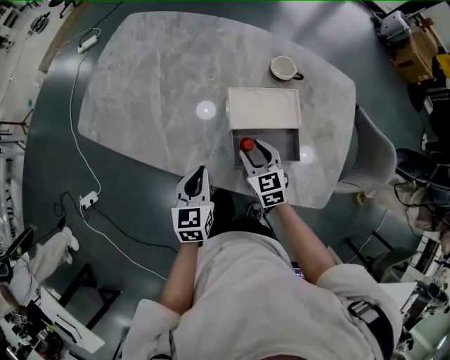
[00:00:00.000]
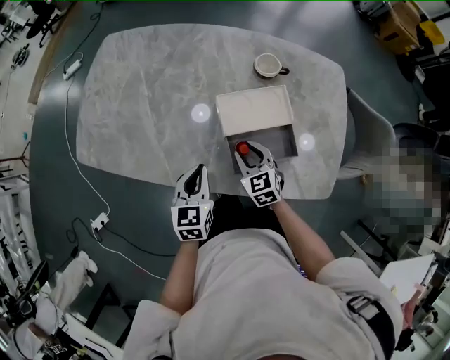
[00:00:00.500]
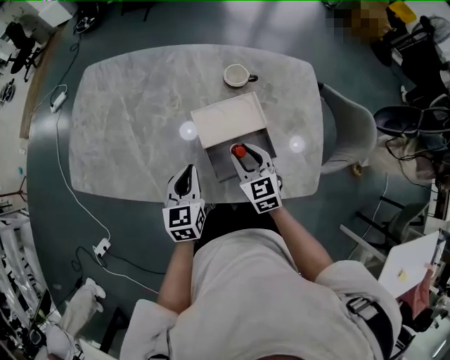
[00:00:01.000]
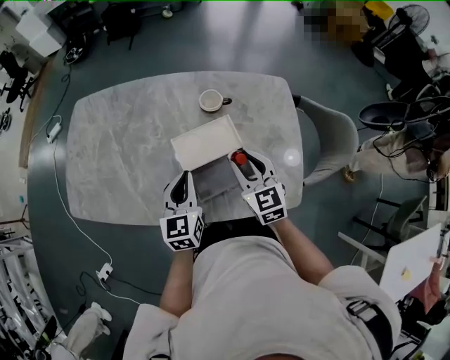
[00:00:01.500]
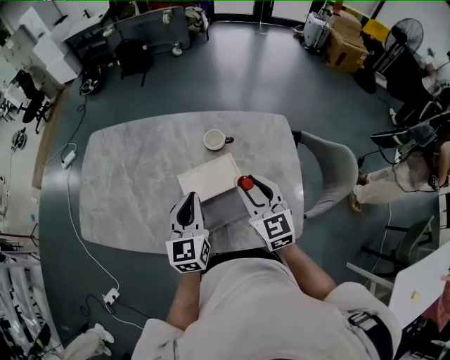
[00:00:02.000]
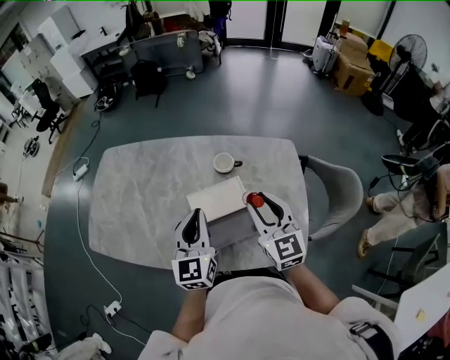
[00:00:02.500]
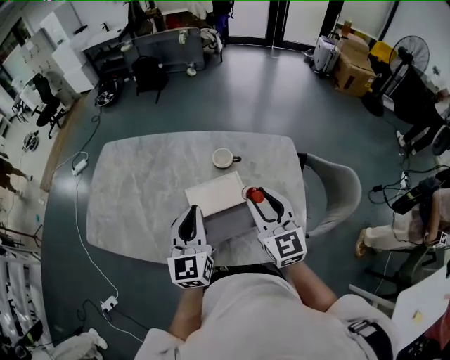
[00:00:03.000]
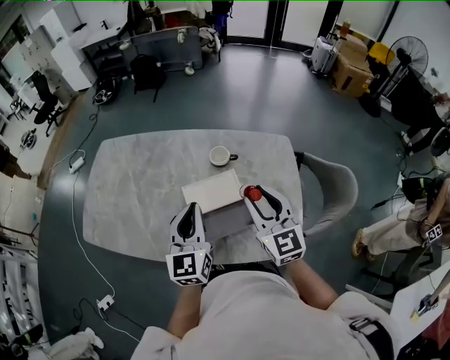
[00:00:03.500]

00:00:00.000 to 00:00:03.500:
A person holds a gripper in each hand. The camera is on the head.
00:00:00.000 to 00:00:02.000: The right gripper shifts some 25 cm upward and to the right, and turns by about 30 degrees. The left gripper moves upward, to the right and forward, about 25 cm, and rotates roughly 20 degrees.
00:00:02.000 to 00:00:03.500: Both grippers move upward, approximately 5 cm.

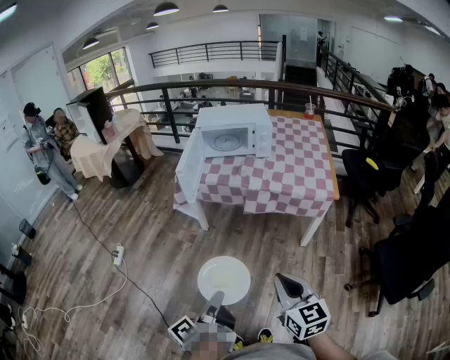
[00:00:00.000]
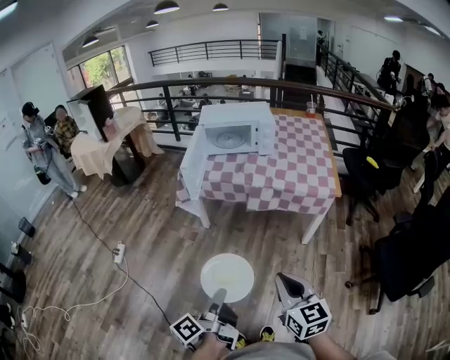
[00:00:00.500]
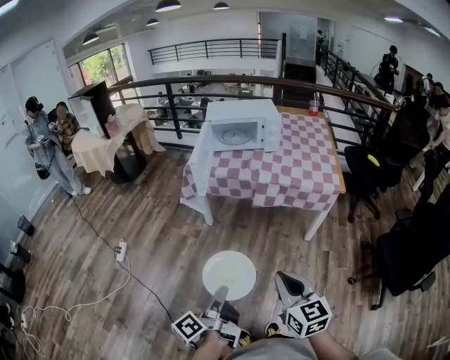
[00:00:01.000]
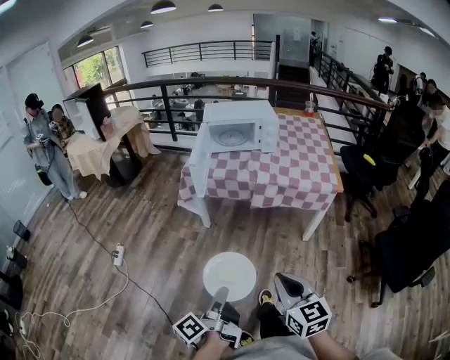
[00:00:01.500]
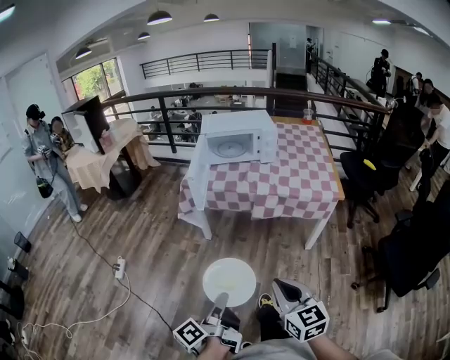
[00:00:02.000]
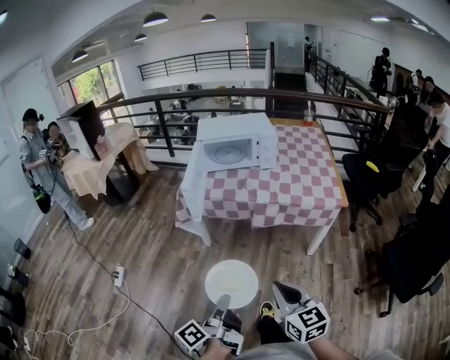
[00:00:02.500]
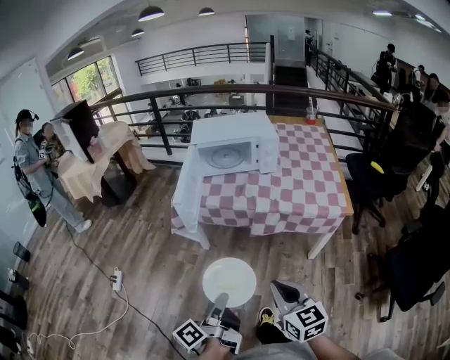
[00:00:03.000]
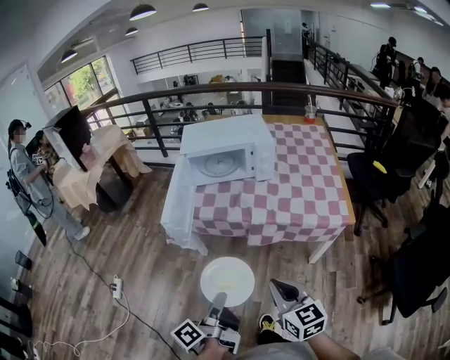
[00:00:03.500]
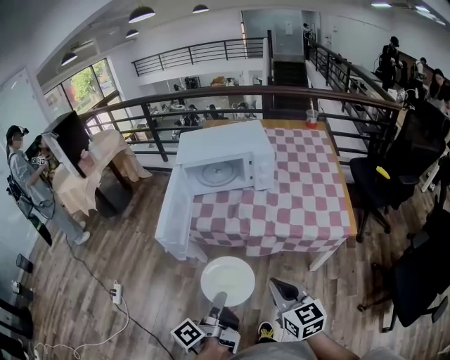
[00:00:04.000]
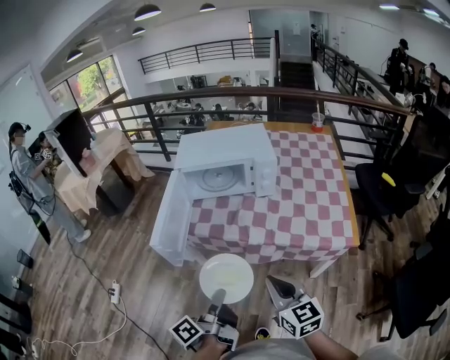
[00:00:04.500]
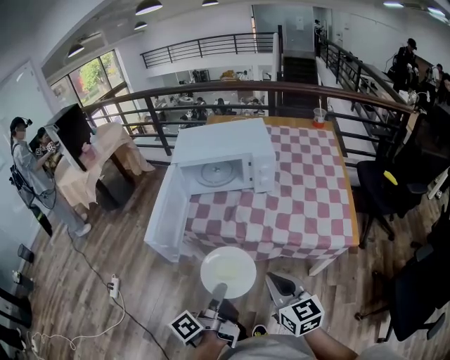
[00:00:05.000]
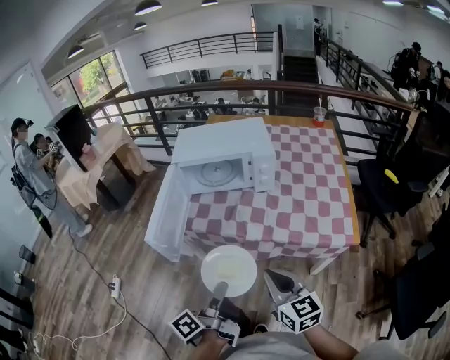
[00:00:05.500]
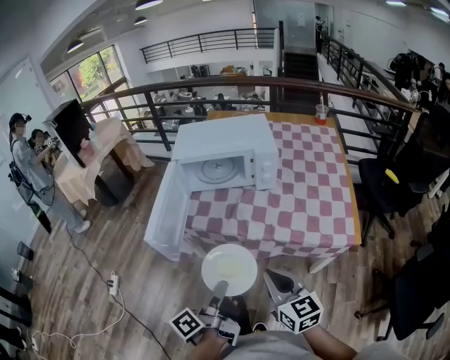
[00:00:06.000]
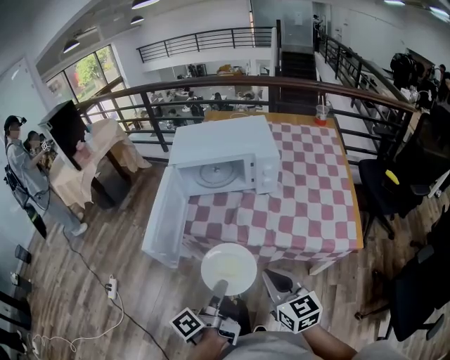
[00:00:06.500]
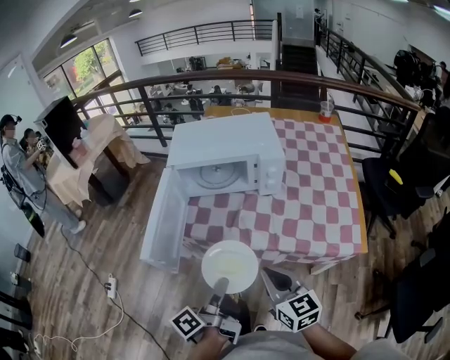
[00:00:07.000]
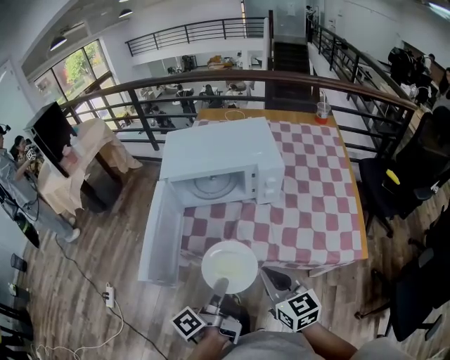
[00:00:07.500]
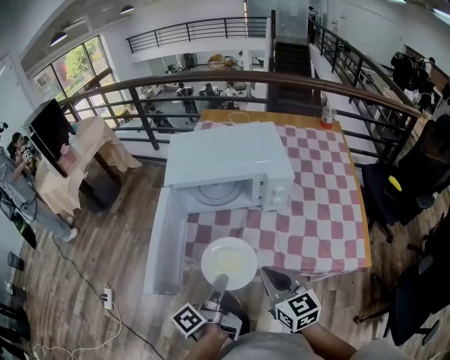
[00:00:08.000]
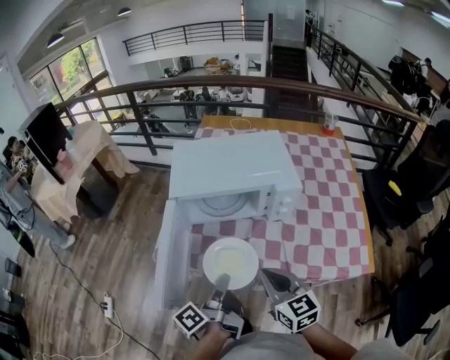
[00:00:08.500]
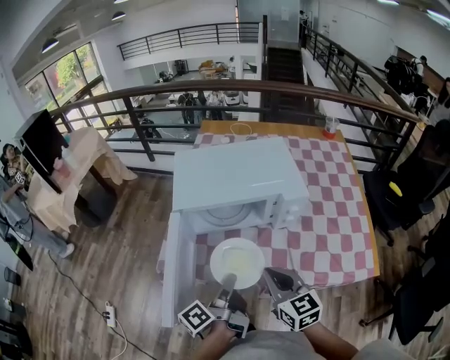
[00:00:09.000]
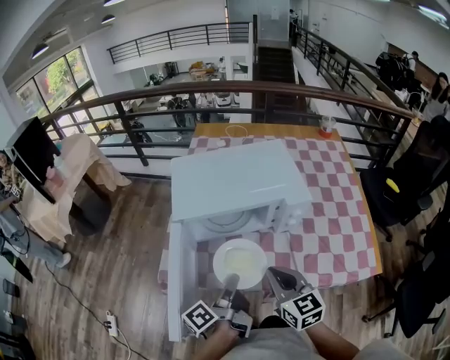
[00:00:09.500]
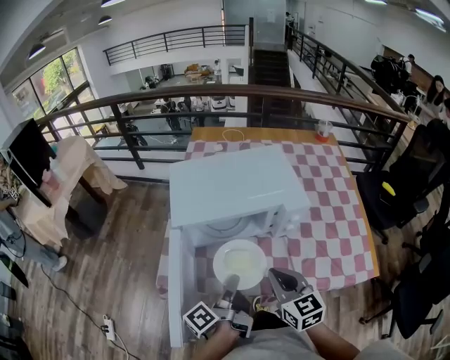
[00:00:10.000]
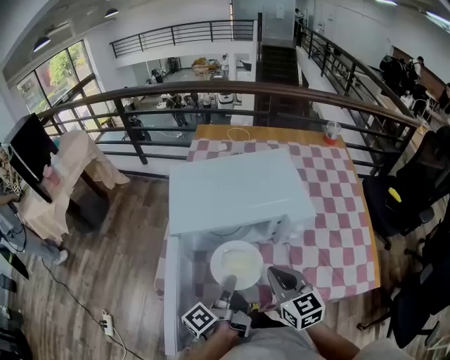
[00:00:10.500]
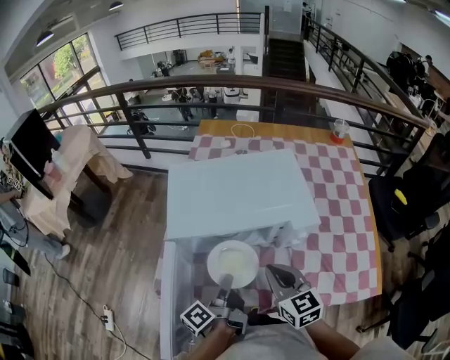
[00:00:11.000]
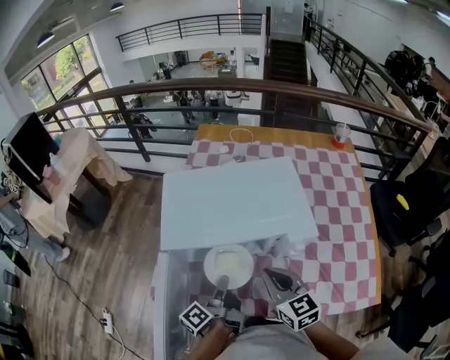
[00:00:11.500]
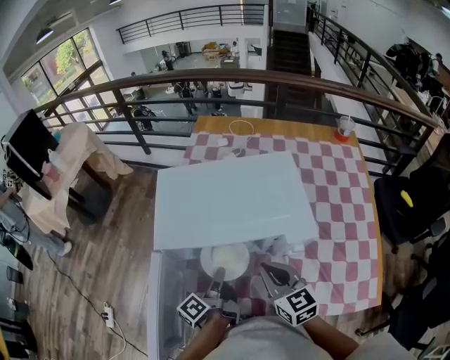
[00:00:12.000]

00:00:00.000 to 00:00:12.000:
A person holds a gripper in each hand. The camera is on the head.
00:00:00.000 to 00:00:02.000: The two grippers go approximately 10 cm to the left.
00:00:02.000 to 00:00:04.000: Both grippers move forward, approximately 30 cm.
00:00:04.000 to 00:00:06.000: Both grippers travel together forward, some 5 cm.
00:00:06.000 to 00:00:08.000: Both grippers move forward, approximately 20 cm.
00:00:08.000 to 00:00:10.000: Both grippers move forward, approximately 15 cm.
00:00:10.000 to 00:00:12.000: The left gripper shifts about 15 cm forward and downward. Meanwhile the right gripper goes some 15 cm forward.

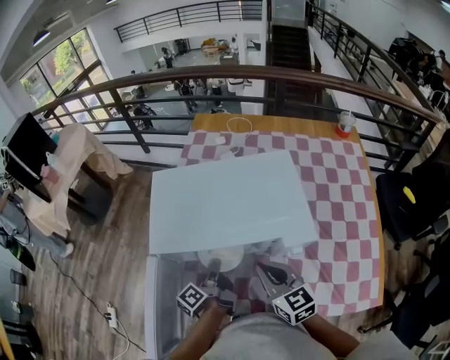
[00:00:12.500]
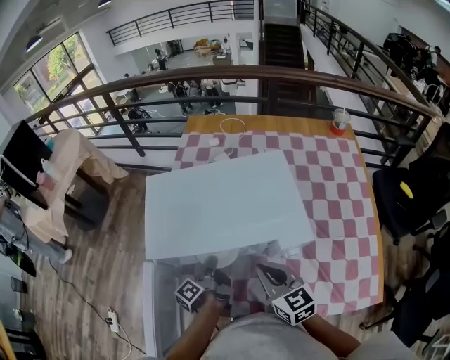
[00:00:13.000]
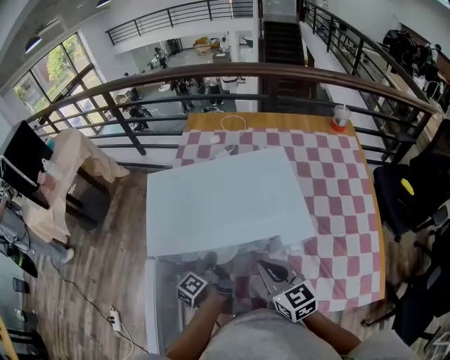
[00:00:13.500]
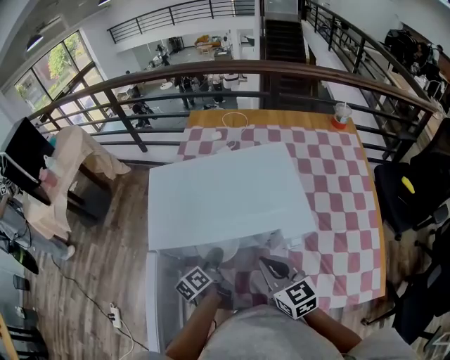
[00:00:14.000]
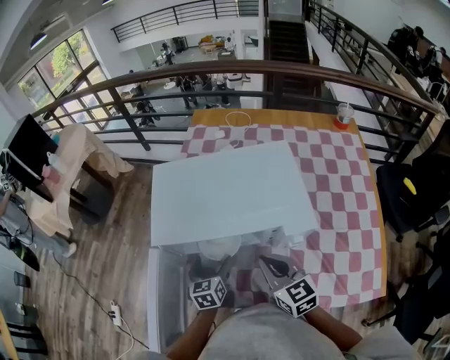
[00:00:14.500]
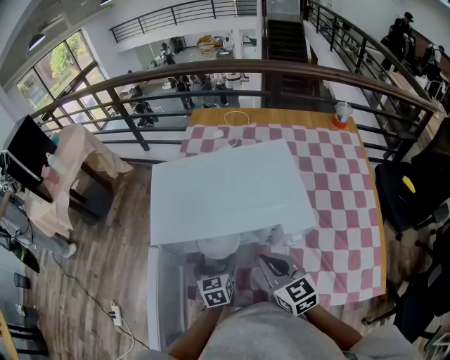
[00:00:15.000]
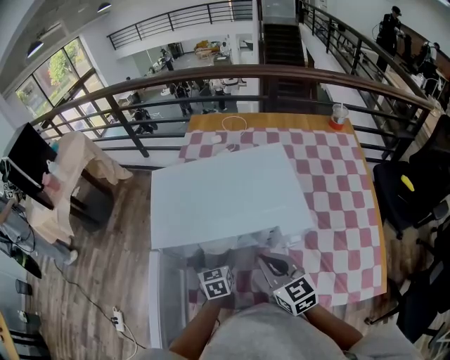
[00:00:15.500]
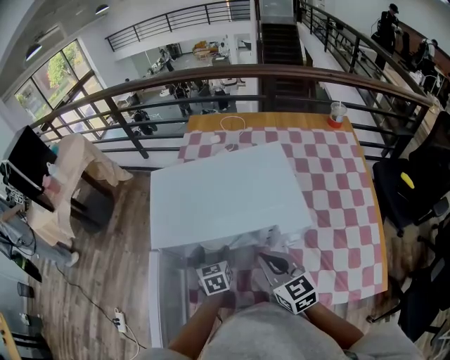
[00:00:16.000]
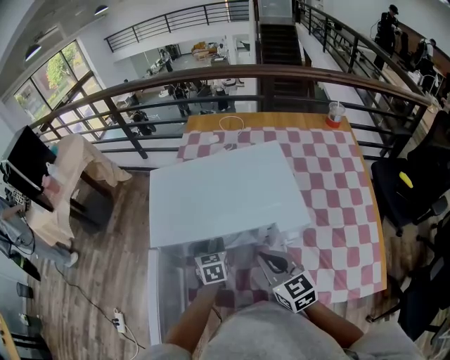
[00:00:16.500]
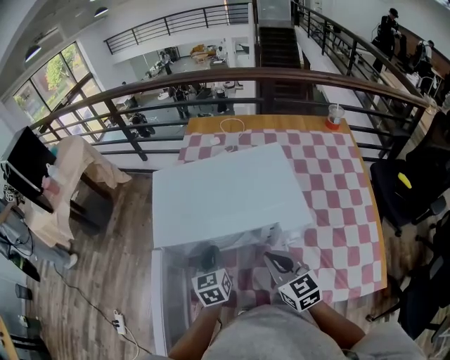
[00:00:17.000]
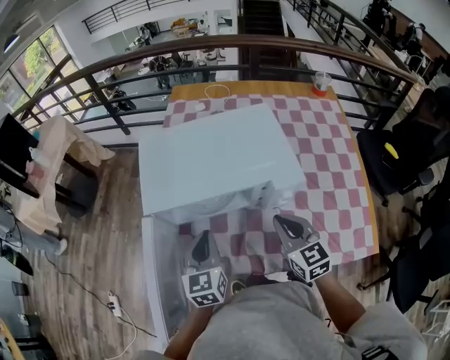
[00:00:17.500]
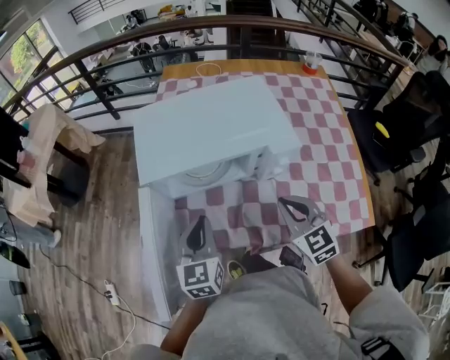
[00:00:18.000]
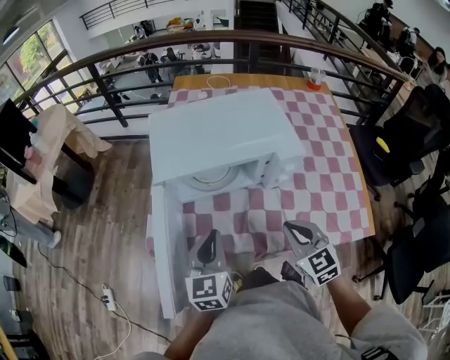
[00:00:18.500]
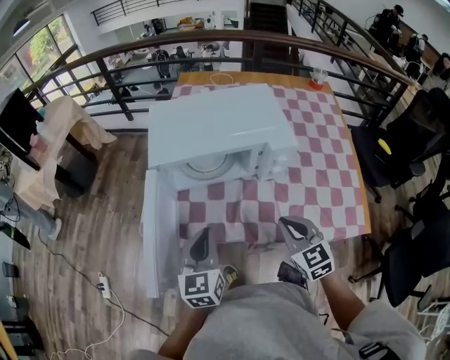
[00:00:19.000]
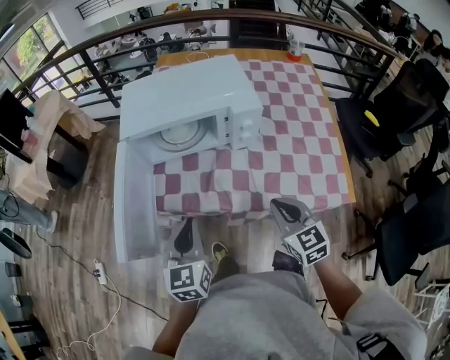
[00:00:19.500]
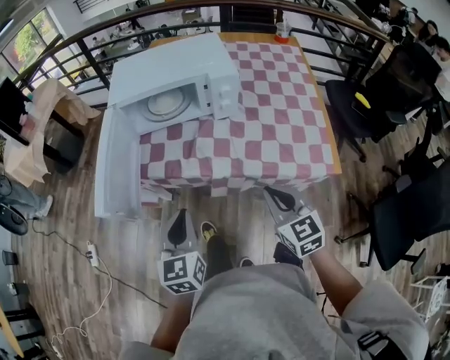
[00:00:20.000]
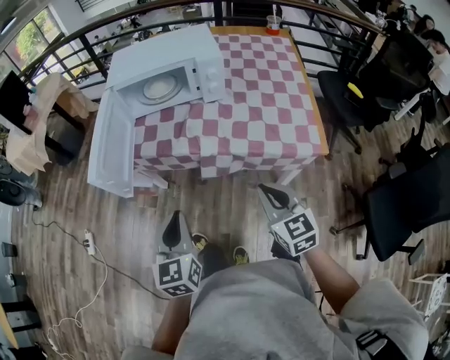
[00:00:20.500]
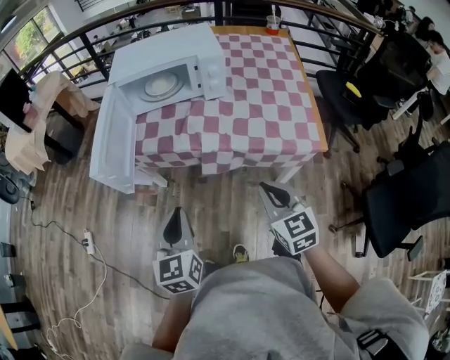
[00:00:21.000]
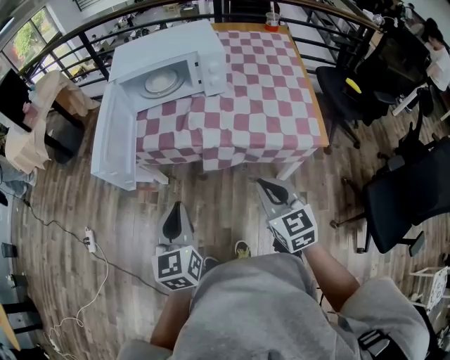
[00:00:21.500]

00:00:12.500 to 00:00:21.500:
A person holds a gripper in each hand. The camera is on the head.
00:00:12.500 to 00:00:14.500: The left gripper rotates around the line of its fingers by approximately 70 degrees, clockwise from behind, and opens its fingers.
00:00:14.500 to 00:00:17.000: The left gripper is displaced upward by approximately 5 cm, and closes its fingers.
00:00:17.000 to 00:00:19.500: The grippers both shift backward by about 25 cm.
00:00:19.500 to 00:00:21.500: Both grippers move backward, approximately 20 cm.

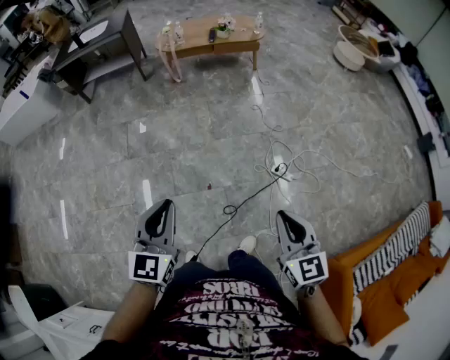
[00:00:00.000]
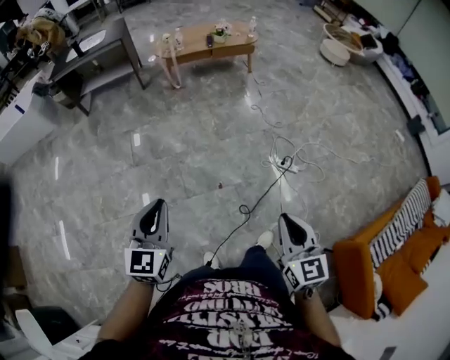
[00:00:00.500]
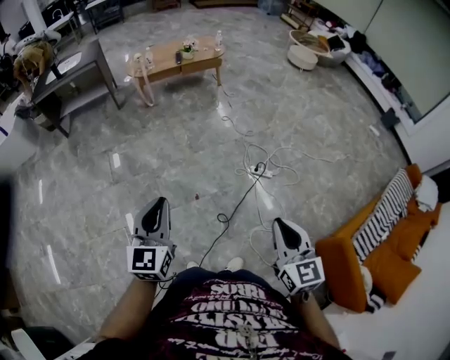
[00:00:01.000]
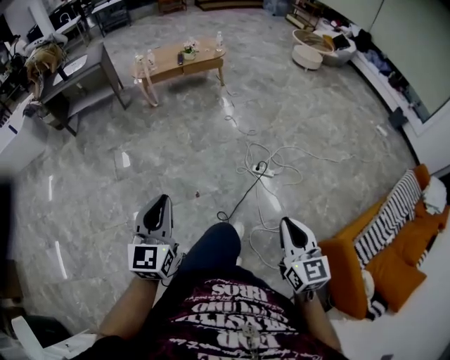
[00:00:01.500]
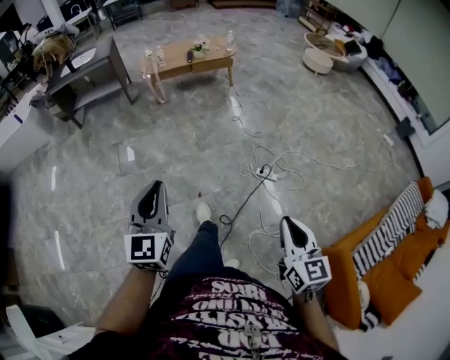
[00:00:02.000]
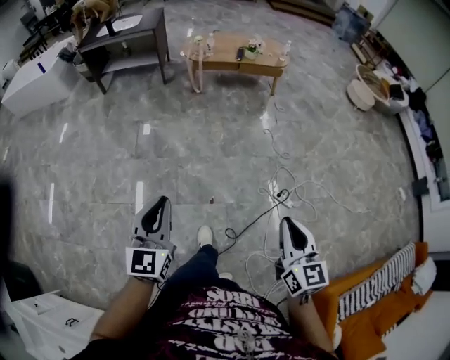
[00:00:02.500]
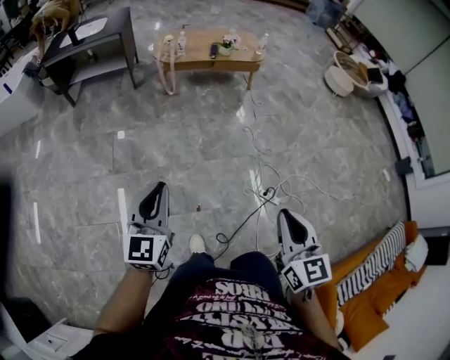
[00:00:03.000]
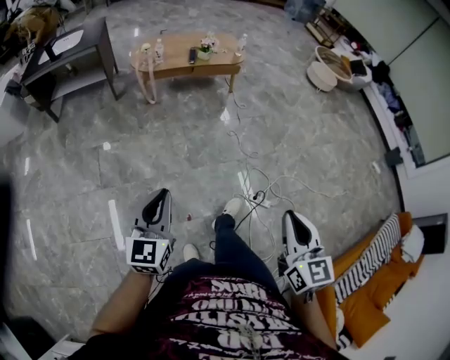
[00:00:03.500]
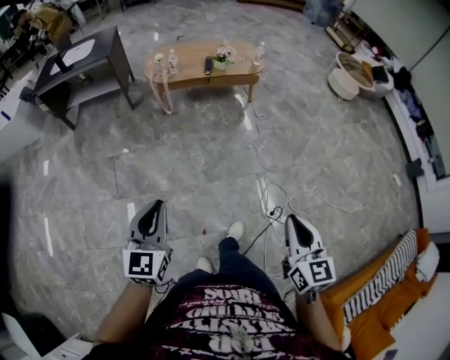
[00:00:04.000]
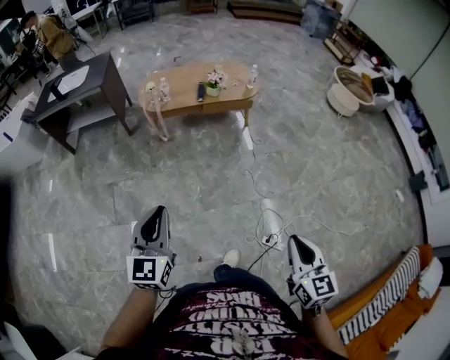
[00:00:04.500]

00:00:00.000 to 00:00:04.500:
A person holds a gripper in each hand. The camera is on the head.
00:00:00.000 to 00:00:02.000: The left gripper heads backward and upward, covering roughly 10 cm, and moves about 15 cm to the left and comes back. Meanwhile the right gripper shifts roughly 15 cm backward.
00:00:02.000 to 00:00:04.500: The two grippers travel together, forward, about 50 cm.
